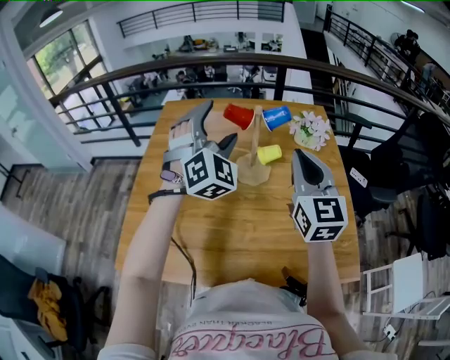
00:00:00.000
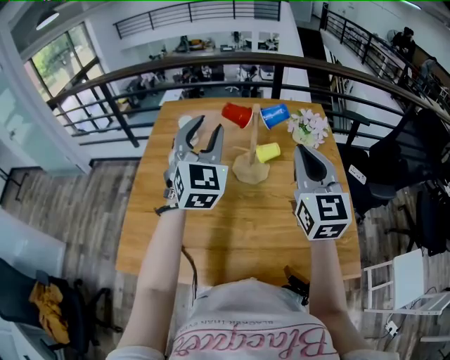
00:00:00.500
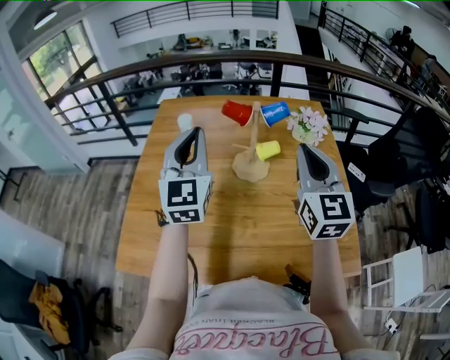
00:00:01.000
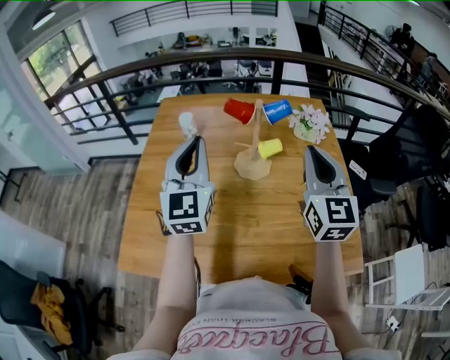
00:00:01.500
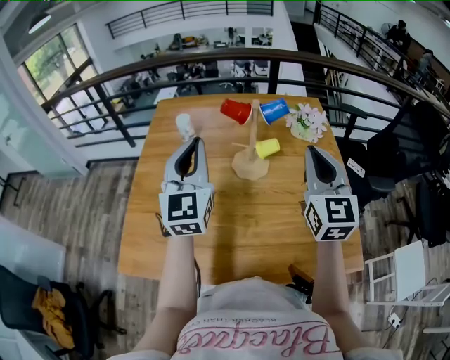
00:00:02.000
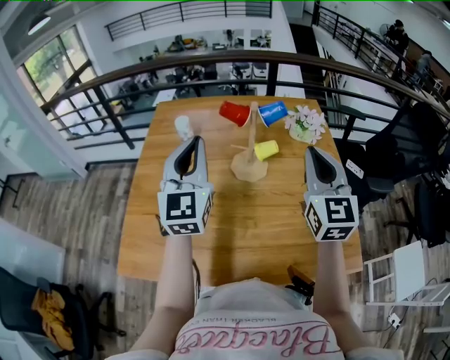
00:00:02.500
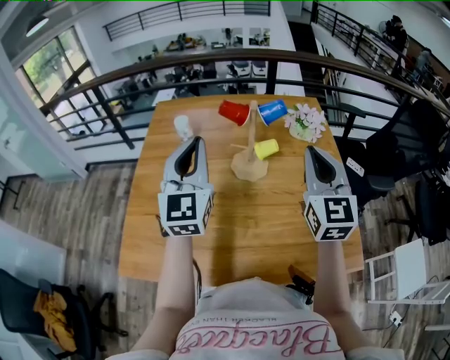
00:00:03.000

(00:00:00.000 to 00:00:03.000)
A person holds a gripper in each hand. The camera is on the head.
00:00:00.000 - 00:00:01.500: The left gripper goes approximately 10 cm to the left and backward, rotates around the line of its fingers by some 50 degrees, counterclockwise from behind, and closes up.
00:00:01.500 - 00:00:03.000: The two grippers keep their place.

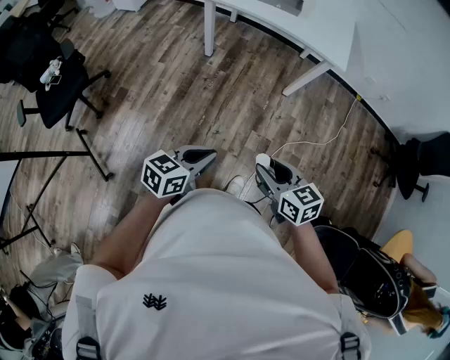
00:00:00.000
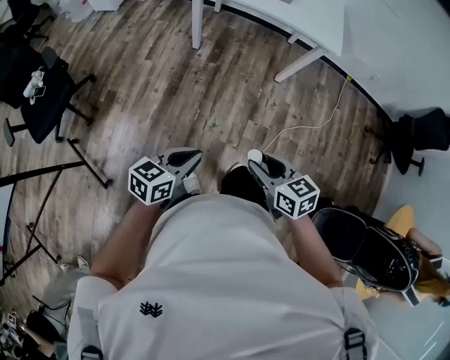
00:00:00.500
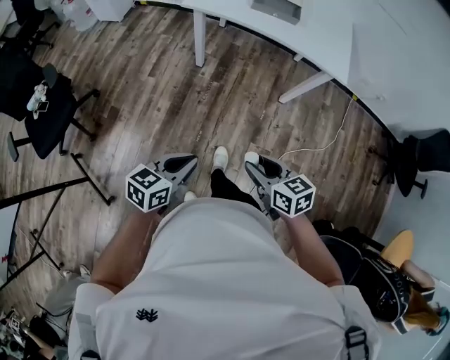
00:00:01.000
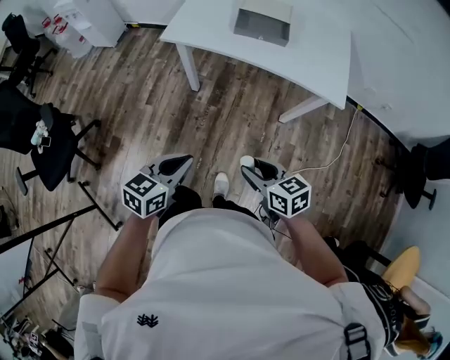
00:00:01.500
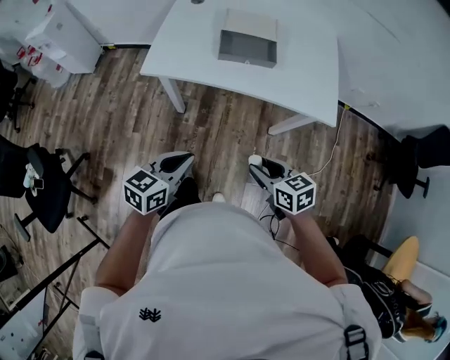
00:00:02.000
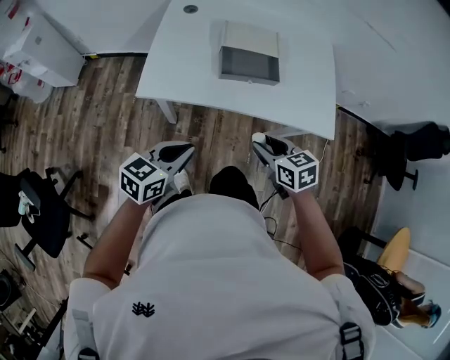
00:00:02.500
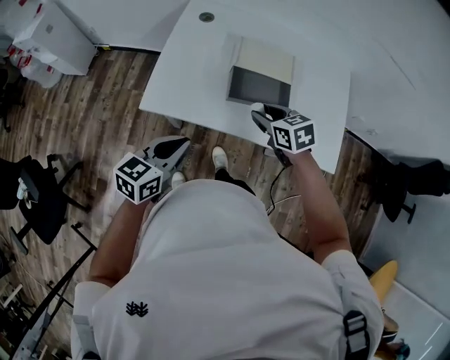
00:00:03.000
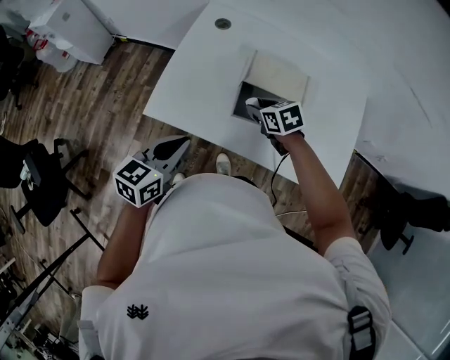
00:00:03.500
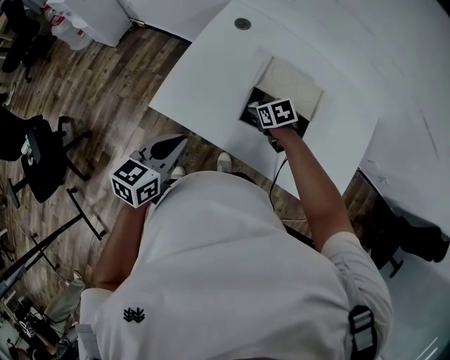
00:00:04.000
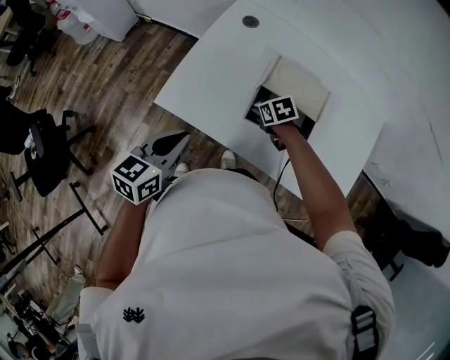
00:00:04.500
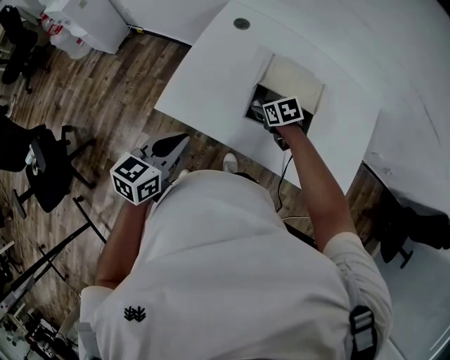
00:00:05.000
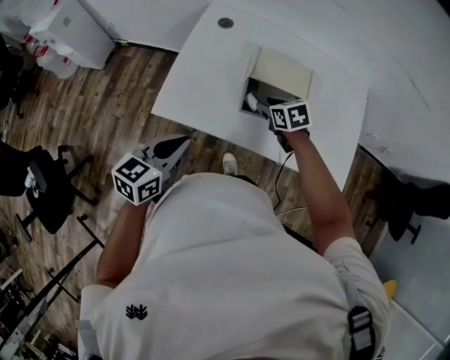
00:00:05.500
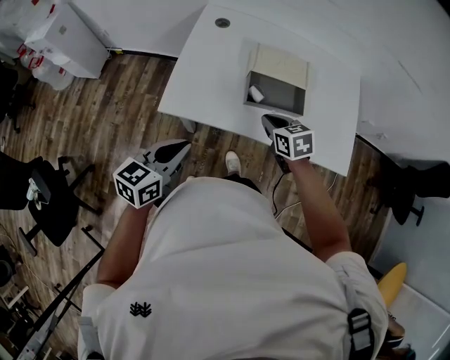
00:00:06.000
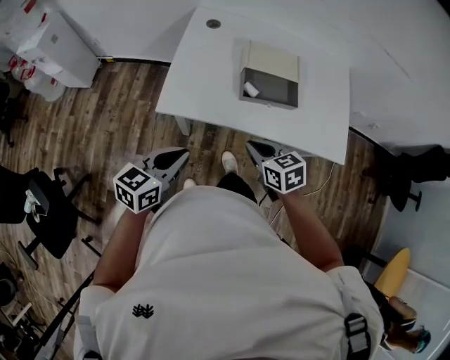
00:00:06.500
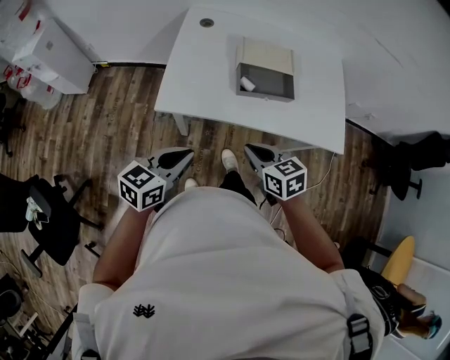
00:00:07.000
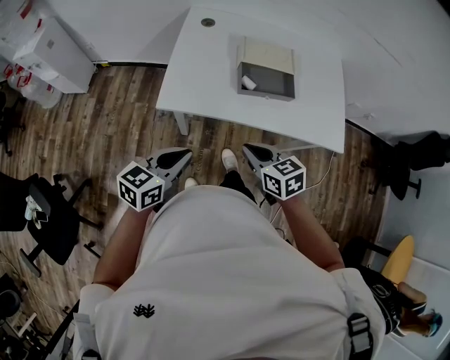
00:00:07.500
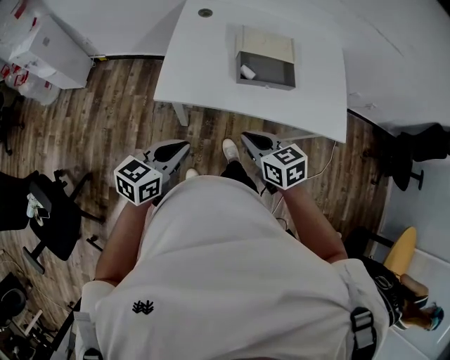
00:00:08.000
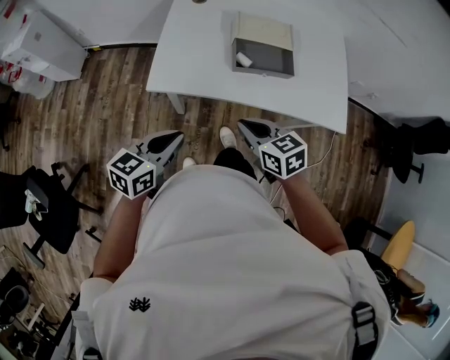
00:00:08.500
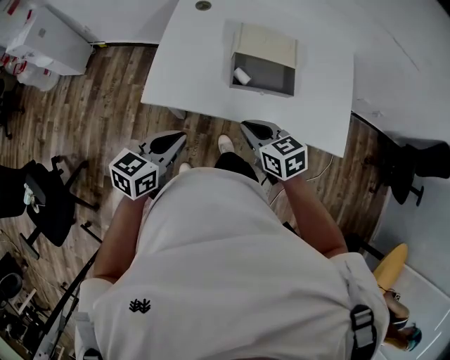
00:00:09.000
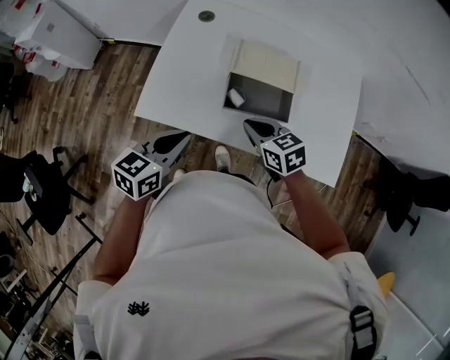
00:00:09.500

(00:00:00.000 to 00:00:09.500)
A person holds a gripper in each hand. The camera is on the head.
00:00:00.000 - 00:00:02.000: Both grippers move forward, some 40 cm.
00:00:02.000 - 00:00:04.000: The left gripper changes place by some 30 cm, and turns by roughly 20 degrees; the right gripper shifts by about 50 cm, and changes its angle by roughly 30 degrees.
00:00:04.000 - 00:00:05.500: The right gripper is displaced upward by some 5 cm.
00:00:05.500 - 00:00:07.500: The left gripper moves backward, some 10 cm. The right gripper heads backward, covering roughly 25 cm, and closes.
00:00:07.500 - 00:00:09.500: The grippers both shift forward and to the right by roughly 20 cm.

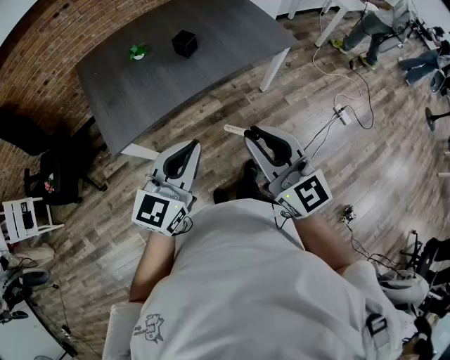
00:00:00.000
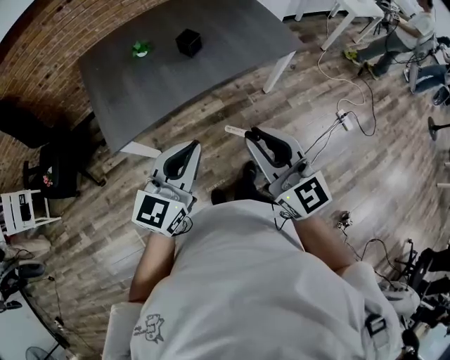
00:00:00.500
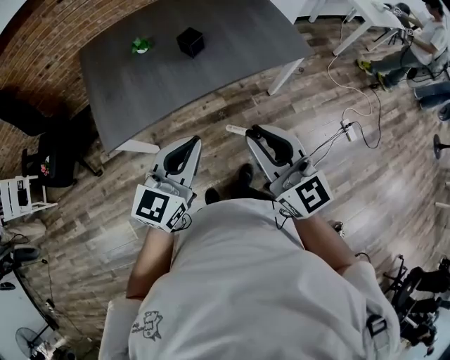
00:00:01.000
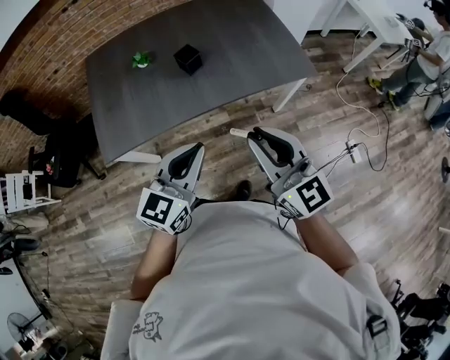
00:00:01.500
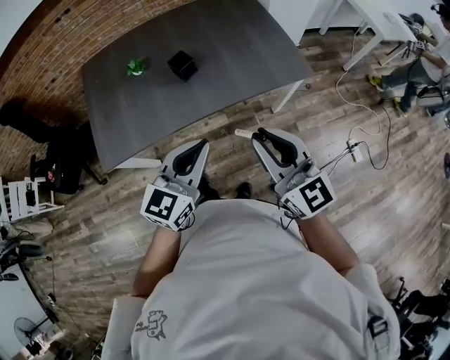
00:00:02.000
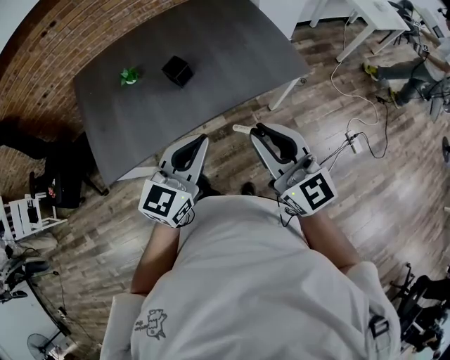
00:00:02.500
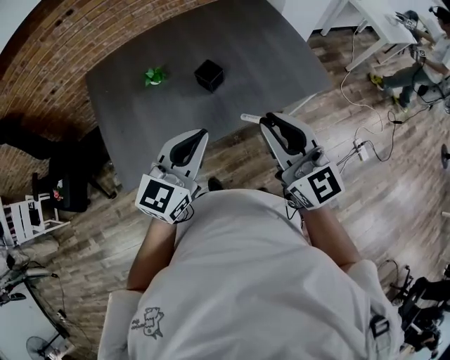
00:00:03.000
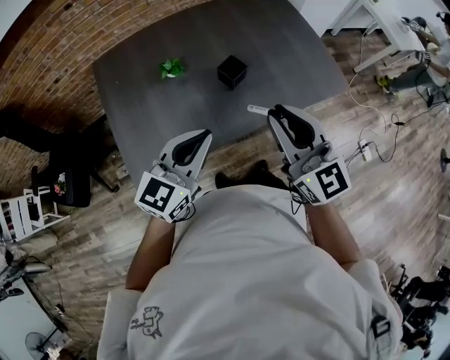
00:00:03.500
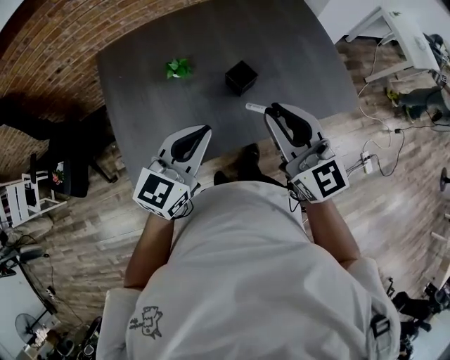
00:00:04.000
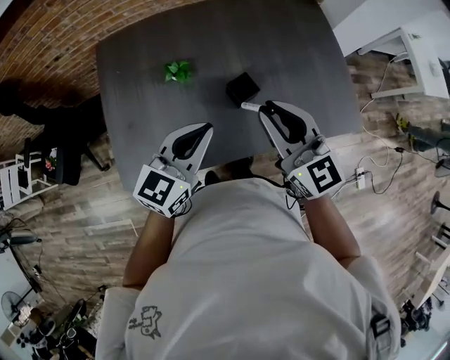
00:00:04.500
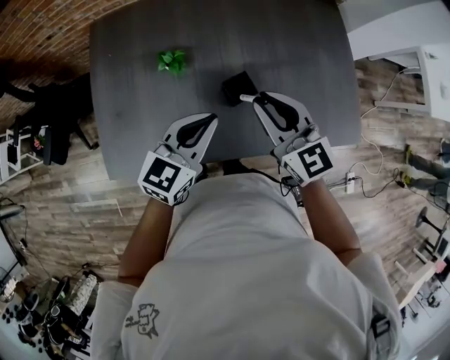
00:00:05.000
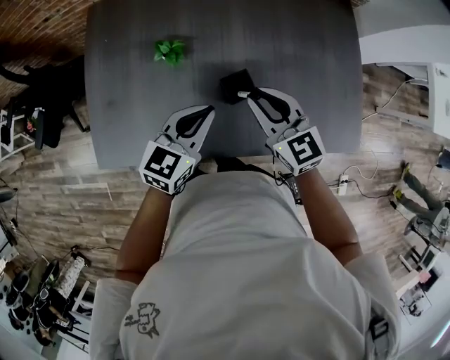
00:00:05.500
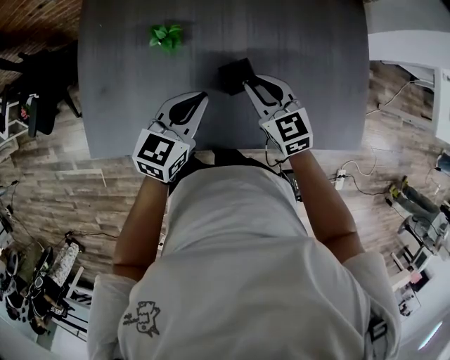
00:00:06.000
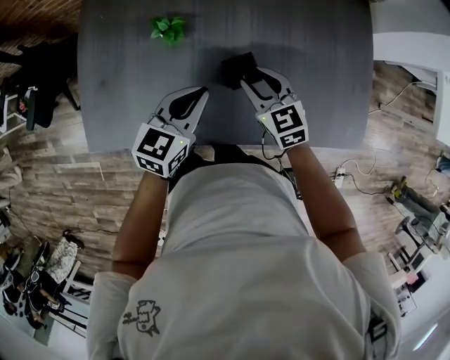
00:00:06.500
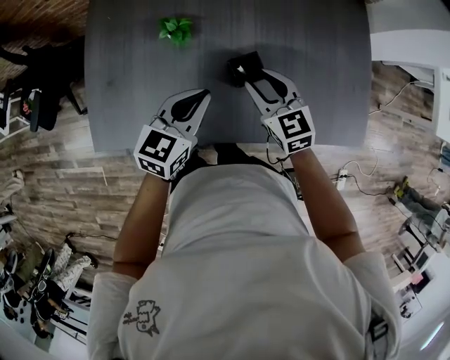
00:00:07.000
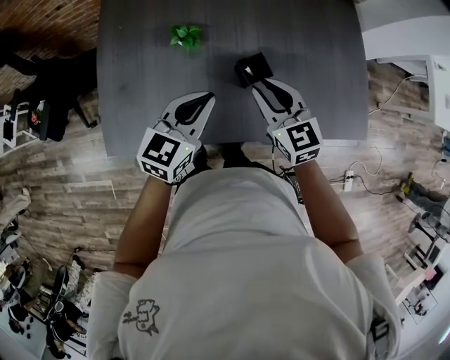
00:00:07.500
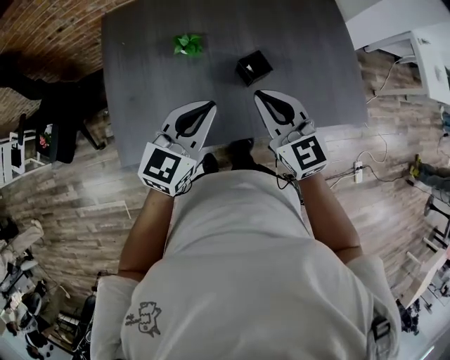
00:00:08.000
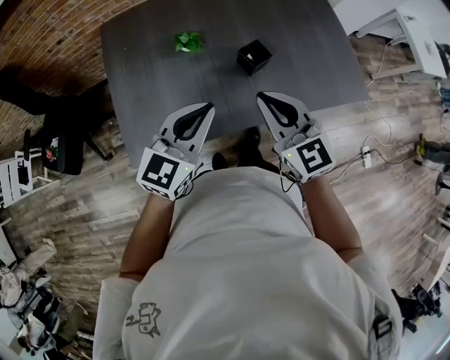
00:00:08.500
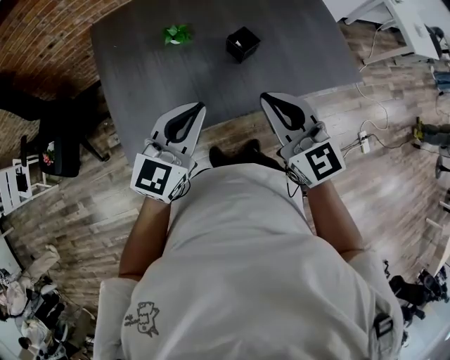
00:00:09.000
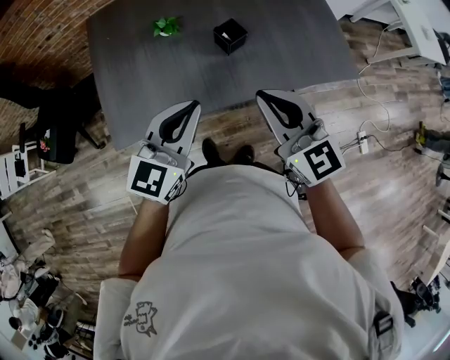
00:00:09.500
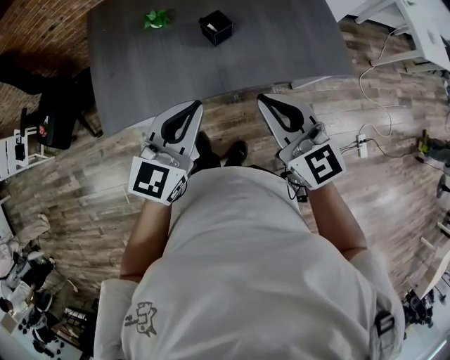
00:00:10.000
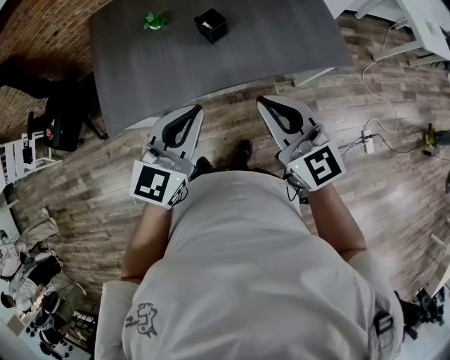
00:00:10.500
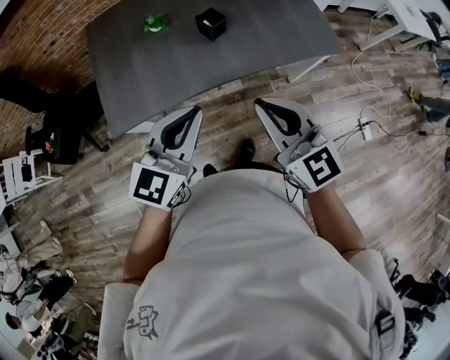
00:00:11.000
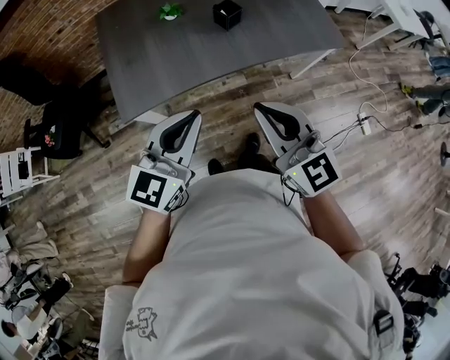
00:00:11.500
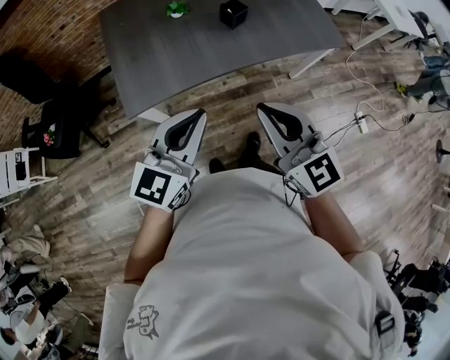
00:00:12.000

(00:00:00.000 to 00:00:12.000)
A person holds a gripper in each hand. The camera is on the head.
00:00:00.000 - 00:00:02.000: The two grippers go approximately 25 cm forward and to the right.
00:00:02.000 - 00:00:04.000: Both grippers travel together to the left and forward, roughly 30 cm.
00:00:04.000 - 00:00:06.000: Both grippers travel together downward and forward, roughly 25 cm. The right gripper turns by about 40 degrees. Meanwhile the left gripper changes its angle by roughly 30 degrees.
00:00:06.000 - 00:00:08.000: The grippers both shift upward, backward and to the left by about 20 cm.
00:00:08.000 - 00:00:10.000: Both grippers travel together backward and to the right, some 20 cm.
00:00:10.000 - 00:00:12.000: Both grippers move backward and to the left, some 25 cm.

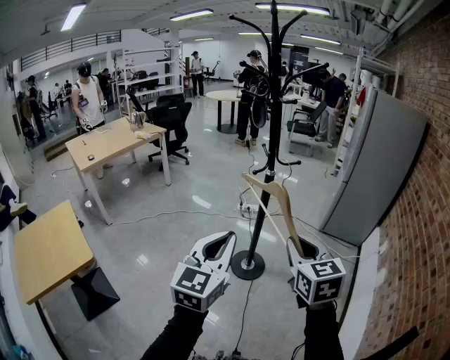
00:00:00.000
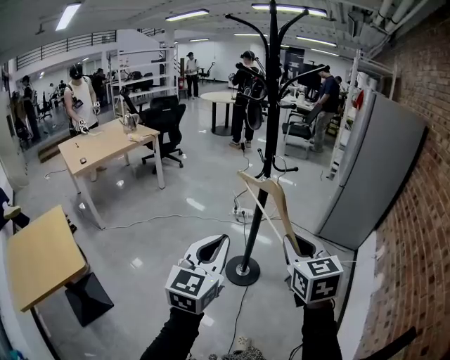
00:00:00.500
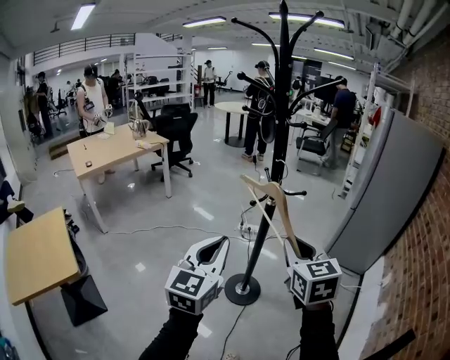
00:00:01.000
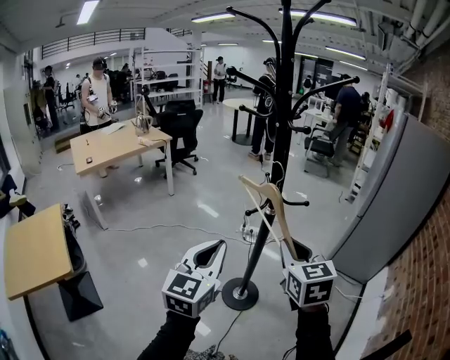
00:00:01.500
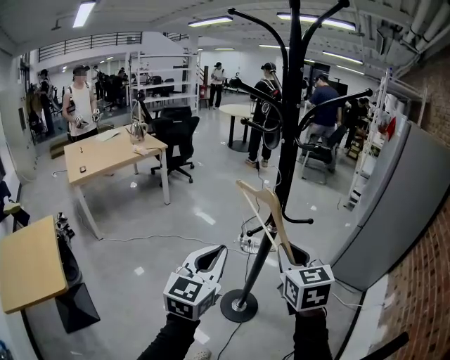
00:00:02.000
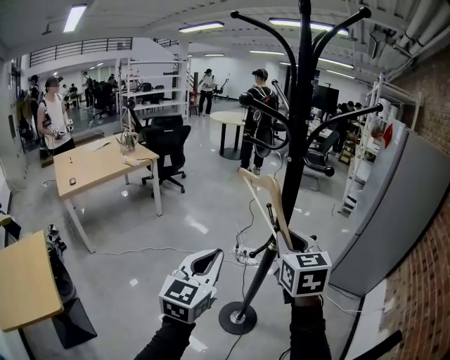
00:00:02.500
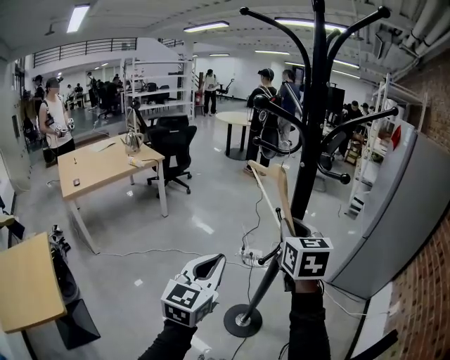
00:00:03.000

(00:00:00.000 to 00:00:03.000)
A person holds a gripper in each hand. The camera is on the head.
00:00:00.000 - 00:00:01.500: Both grippers travel together forward, roughly 20 cm.
00:00:01.500 - 00:00:03.000: The right gripper goes approximately 20 cm forward. The left gripper heads forward and to the left, covering roughly 15 cm.
